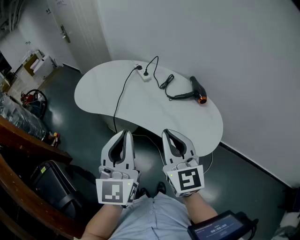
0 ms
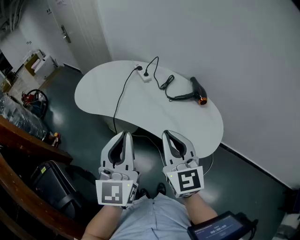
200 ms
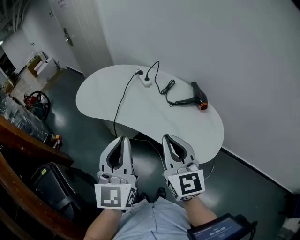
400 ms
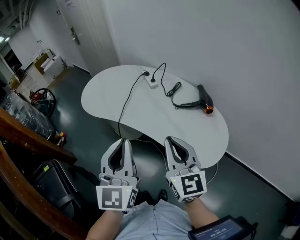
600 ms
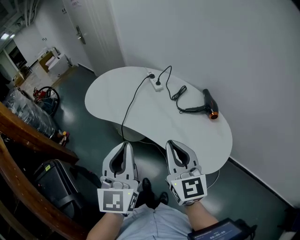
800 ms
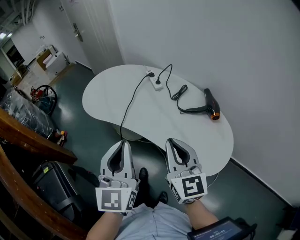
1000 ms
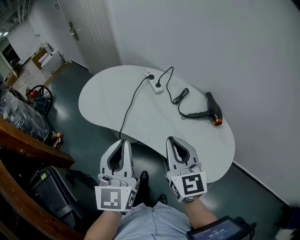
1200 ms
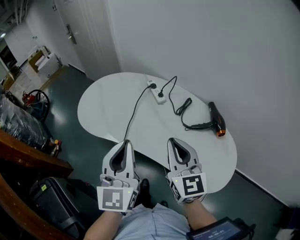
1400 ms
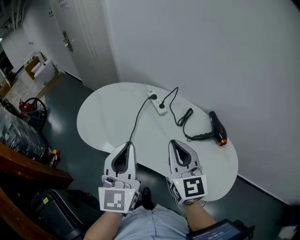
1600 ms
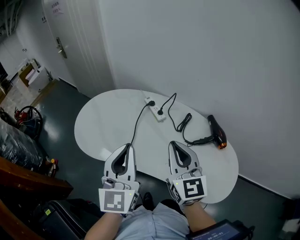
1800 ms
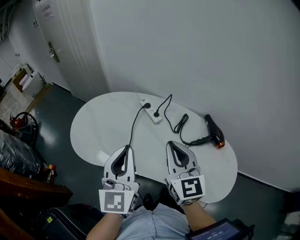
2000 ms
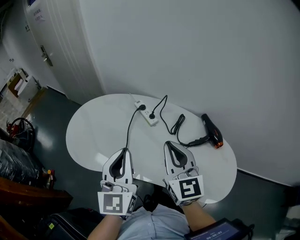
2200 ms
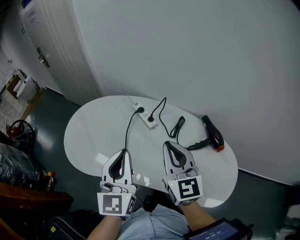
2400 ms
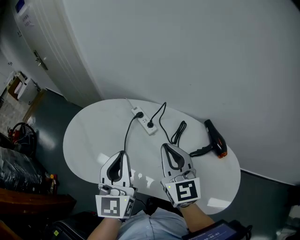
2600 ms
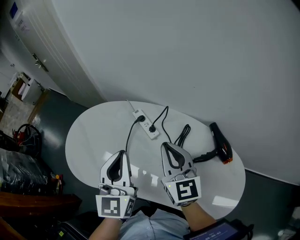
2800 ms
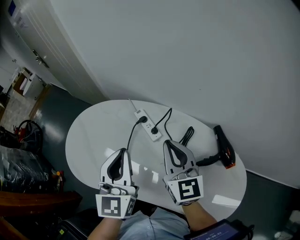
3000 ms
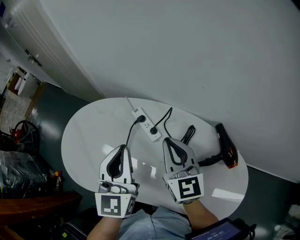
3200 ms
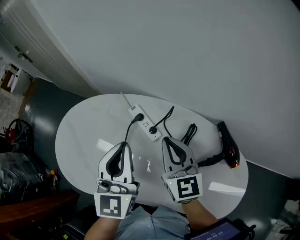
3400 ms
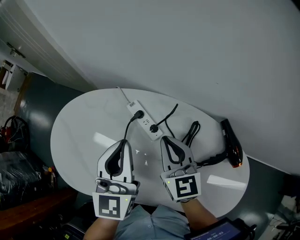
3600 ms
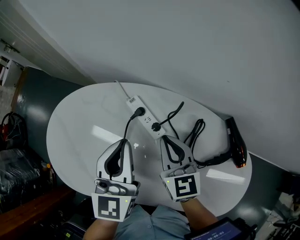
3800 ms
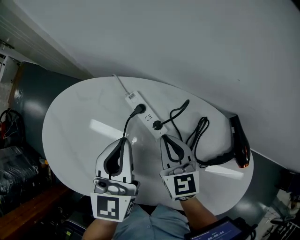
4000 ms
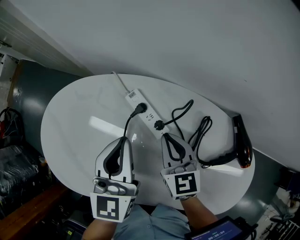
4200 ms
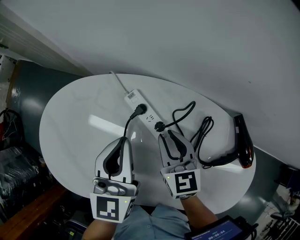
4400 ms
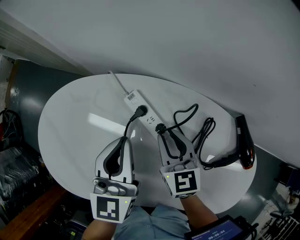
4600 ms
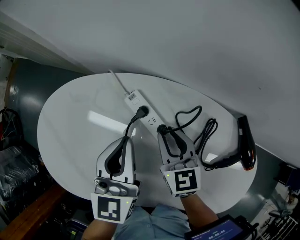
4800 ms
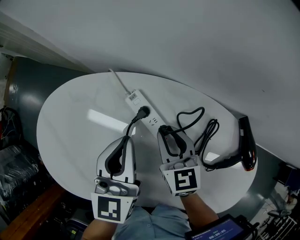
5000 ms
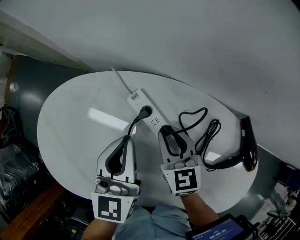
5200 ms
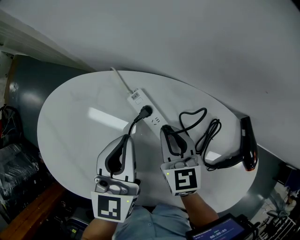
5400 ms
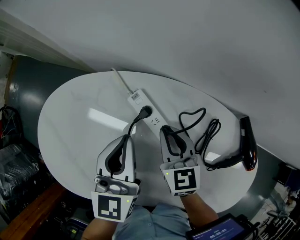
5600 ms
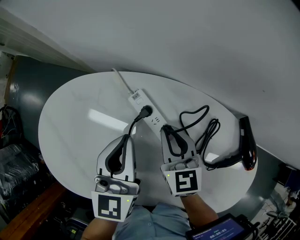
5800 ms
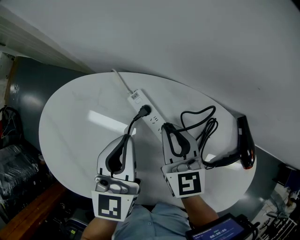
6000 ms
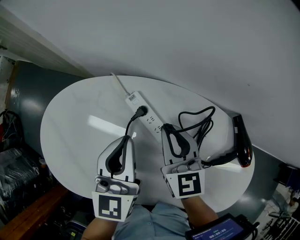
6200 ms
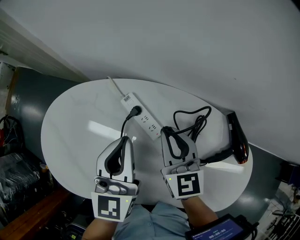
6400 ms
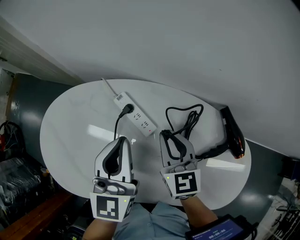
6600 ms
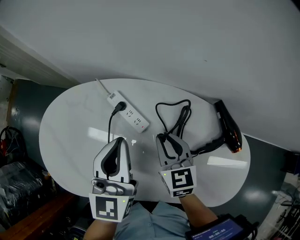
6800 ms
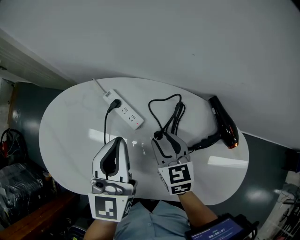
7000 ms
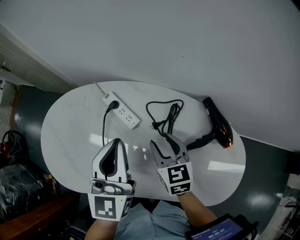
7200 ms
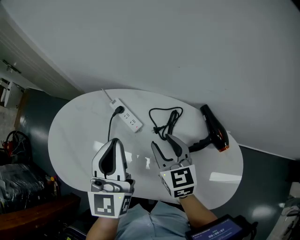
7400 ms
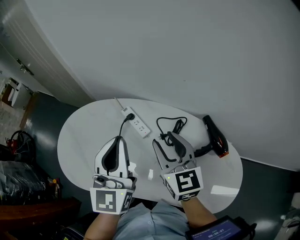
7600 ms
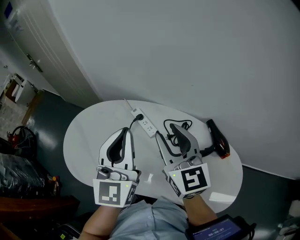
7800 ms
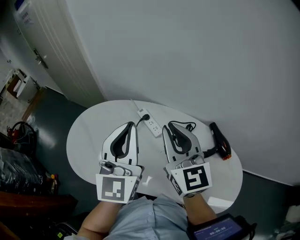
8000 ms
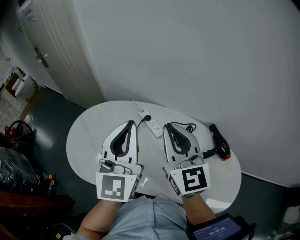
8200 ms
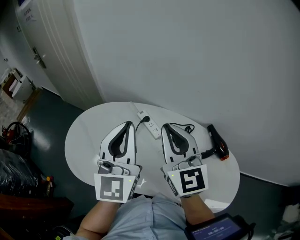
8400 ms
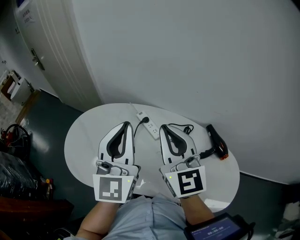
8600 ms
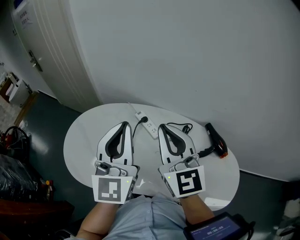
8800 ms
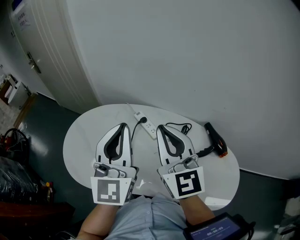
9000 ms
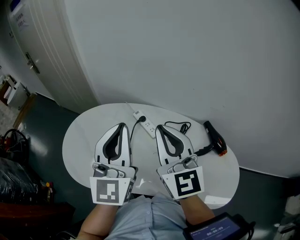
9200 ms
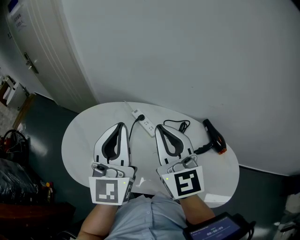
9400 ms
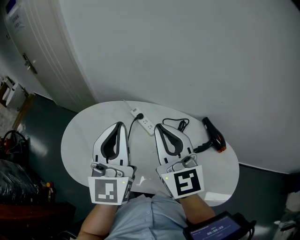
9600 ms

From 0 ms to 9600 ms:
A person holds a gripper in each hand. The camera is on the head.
From 0 ms to 1600 ms: The two grippers go approximately 20 cm forward.
From 1600 ms to 3200 ms: The two grippers go approximately 20 cm forward.
From 3200 ms to 4800 ms: Both grippers travel together downward and forward, approximately 15 cm. The right gripper opens its fingers.
From 4800 ms to 6400 ms: The right gripper shifts approximately 5 cm upward.
From 6400 ms to 8000 ms: Both grippers move upward and backward, roughly 20 cm. The left gripper changes its angle by about 30 degrees. The right gripper rotates approximately 20 degrees, and opens, then closes once more.
From 8000 ms to 9600 ms: The right gripper ends up roughly 5 cm from where it was.

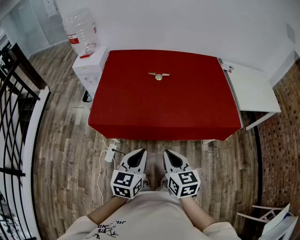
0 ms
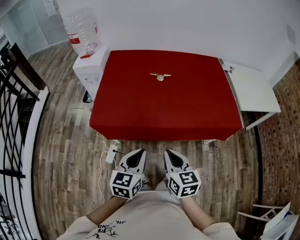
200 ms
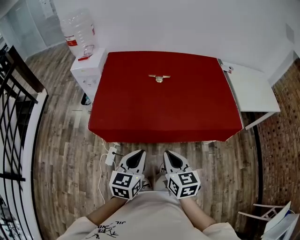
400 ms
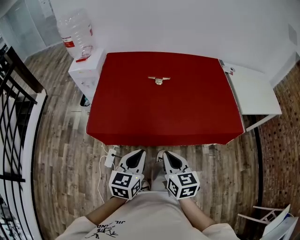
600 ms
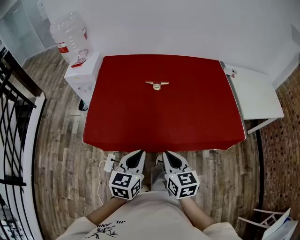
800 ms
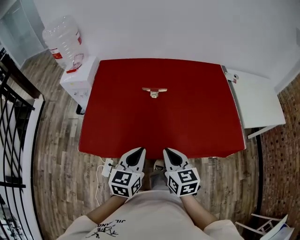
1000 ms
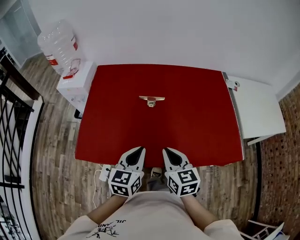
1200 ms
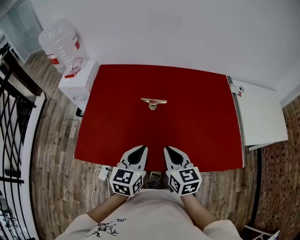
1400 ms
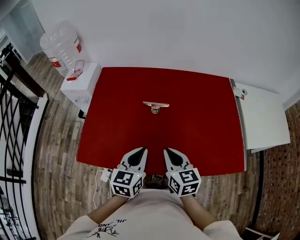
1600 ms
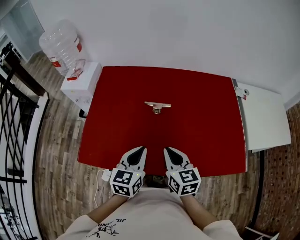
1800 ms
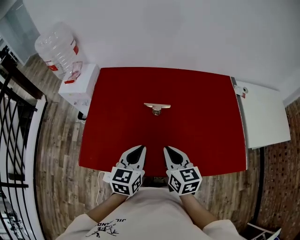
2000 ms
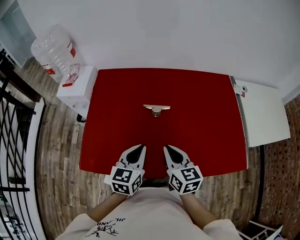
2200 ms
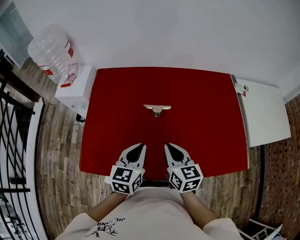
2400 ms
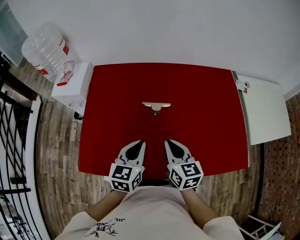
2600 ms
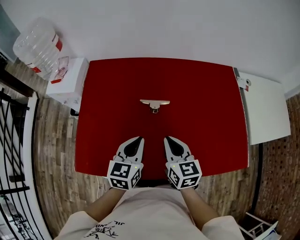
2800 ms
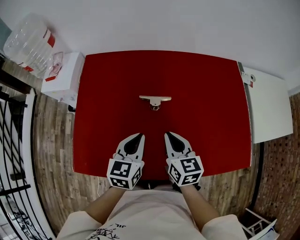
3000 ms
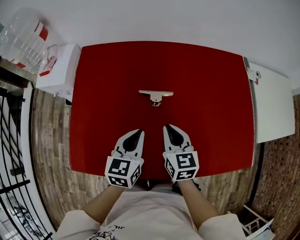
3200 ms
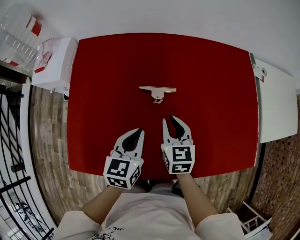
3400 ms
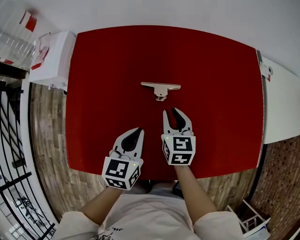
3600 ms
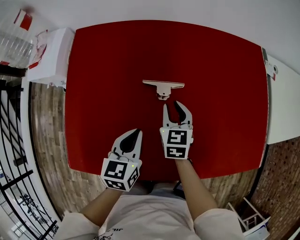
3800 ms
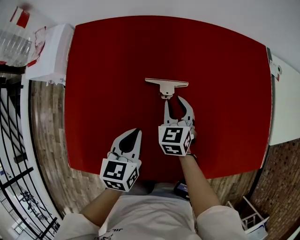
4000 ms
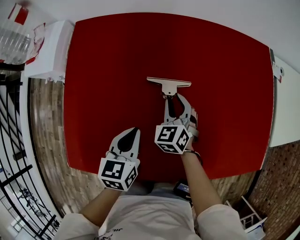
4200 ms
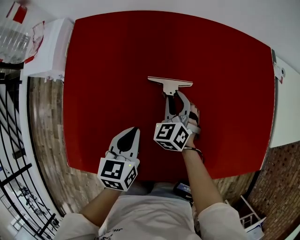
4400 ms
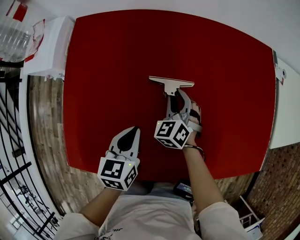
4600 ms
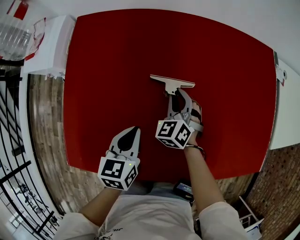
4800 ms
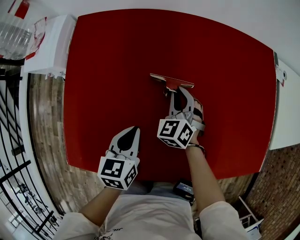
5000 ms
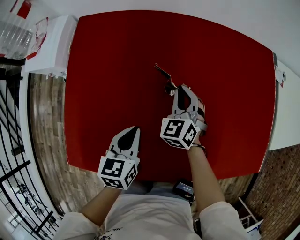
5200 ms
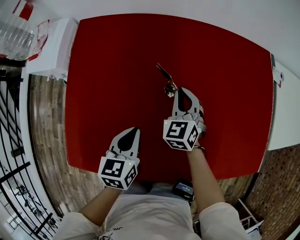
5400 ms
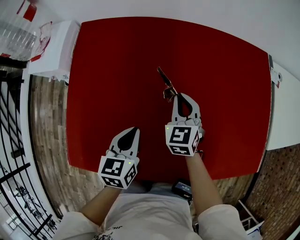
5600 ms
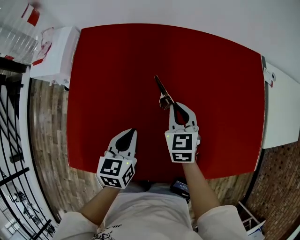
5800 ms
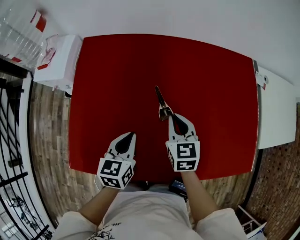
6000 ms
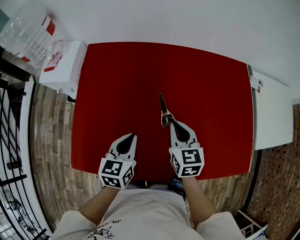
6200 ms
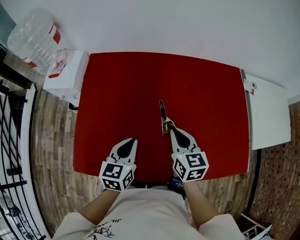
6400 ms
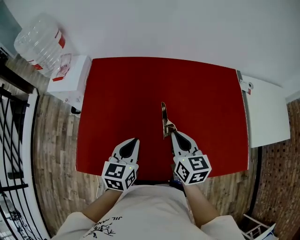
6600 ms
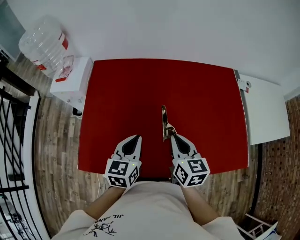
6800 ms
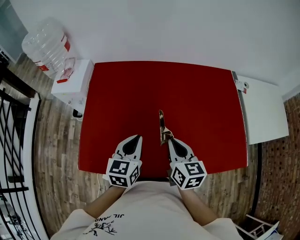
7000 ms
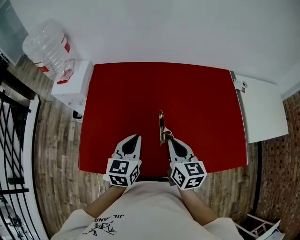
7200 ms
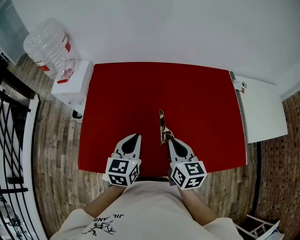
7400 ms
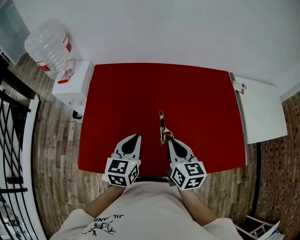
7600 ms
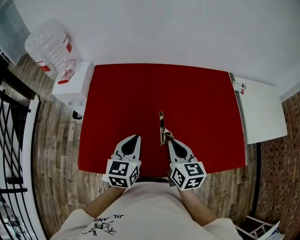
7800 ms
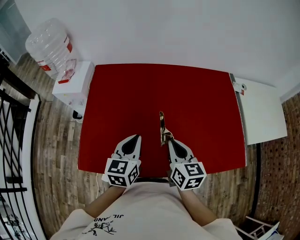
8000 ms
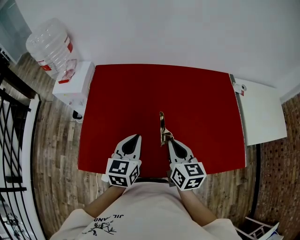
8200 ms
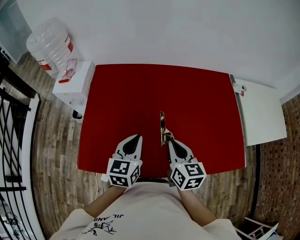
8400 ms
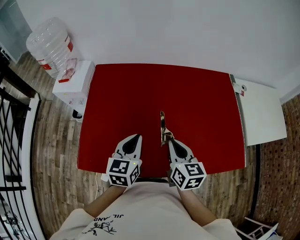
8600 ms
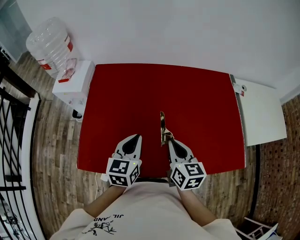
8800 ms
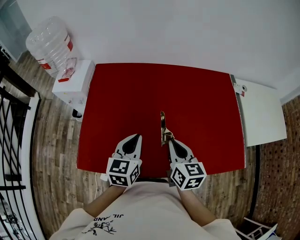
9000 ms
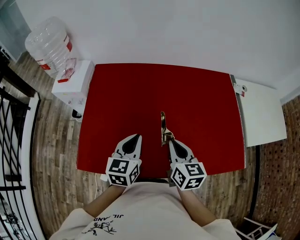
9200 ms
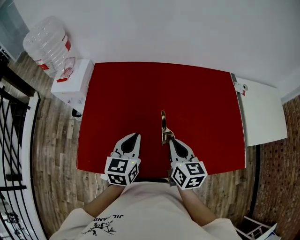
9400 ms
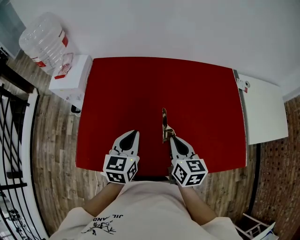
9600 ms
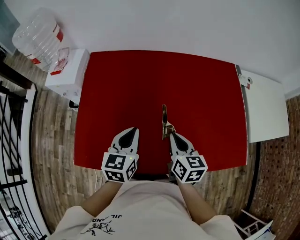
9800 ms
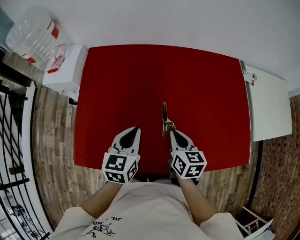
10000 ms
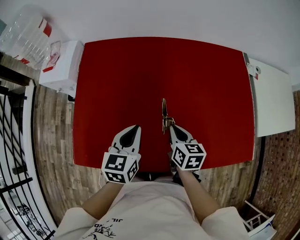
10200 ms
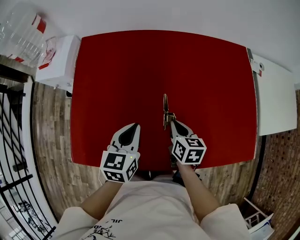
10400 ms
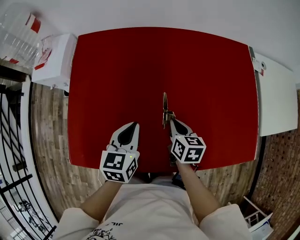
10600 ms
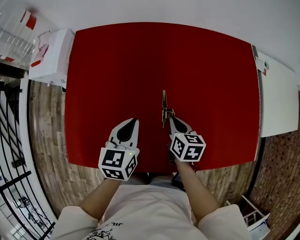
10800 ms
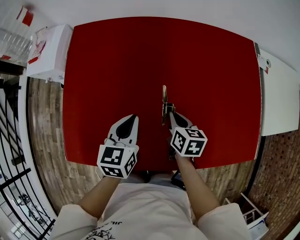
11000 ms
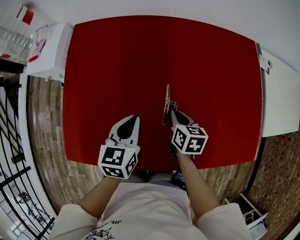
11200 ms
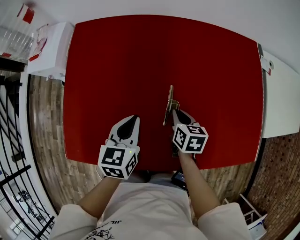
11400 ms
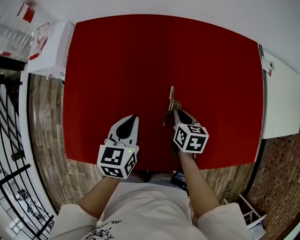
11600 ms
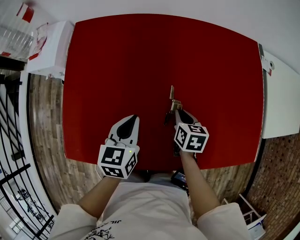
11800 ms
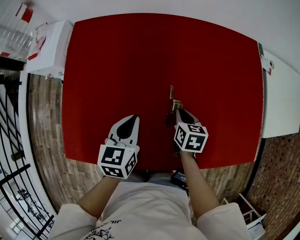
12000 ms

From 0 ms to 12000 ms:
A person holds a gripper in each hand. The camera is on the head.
From 0 ms to 1600 ms: The two grippers go some 30 cm forward.
From 1600 ms to 3000 ms: The grippers both shift forward by about 15 cm.
From 3000 ms to 4400 ms: The left gripper shifts approximately 15 cm downward and to the left, while the right gripper is displaced downward and forward by some 25 cm, twists approximately 50 degrees counterclockwise, seen from behind, and opens up.
From 4400 ms to 6000 ms: The left gripper heads upward, covering about 5 cm; the right gripper travels upward and backward by some 15 cm, turns by some 40 degrees, and closes.
From 6000 ms to 7600 ms: The right gripper goes roughly 20 cm backward and upward, and rotates approximately 20 degrees. The left gripper goes some 15 cm upward and backward.
From 7600 ms to 9000 ms: Both grippers stay put.
From 9000 ms to 10400 ms: The left gripper goes roughly 10 cm downward and forward, while the right gripper is displaced downward and forward by approximately 20 cm.
From 10400 ms to 12000 ms: The two grippers go about 5 cm downward.

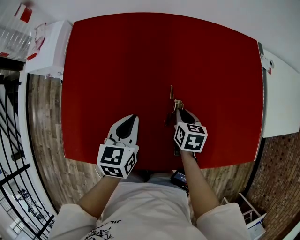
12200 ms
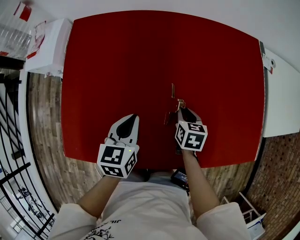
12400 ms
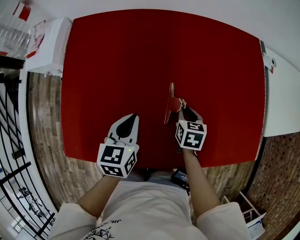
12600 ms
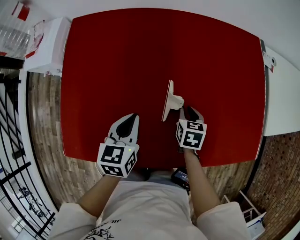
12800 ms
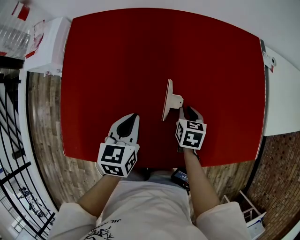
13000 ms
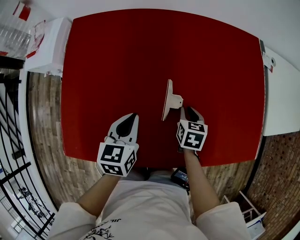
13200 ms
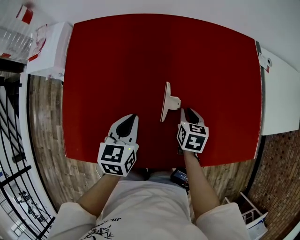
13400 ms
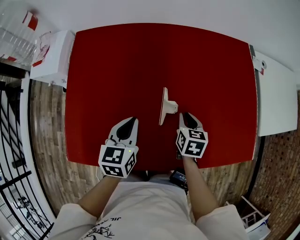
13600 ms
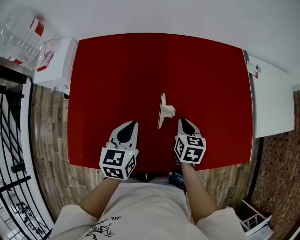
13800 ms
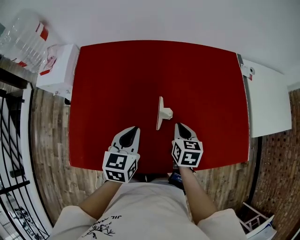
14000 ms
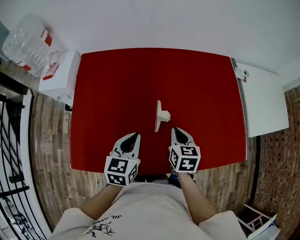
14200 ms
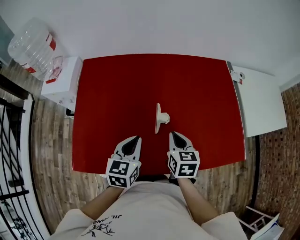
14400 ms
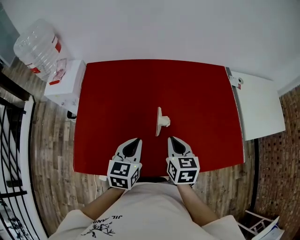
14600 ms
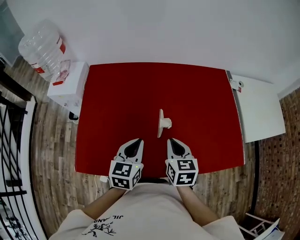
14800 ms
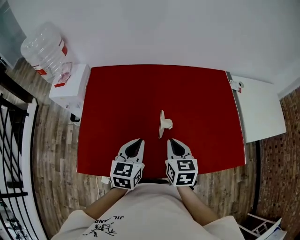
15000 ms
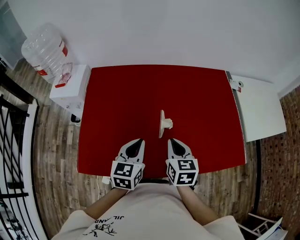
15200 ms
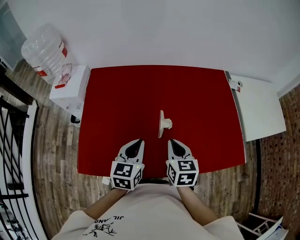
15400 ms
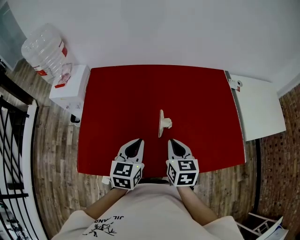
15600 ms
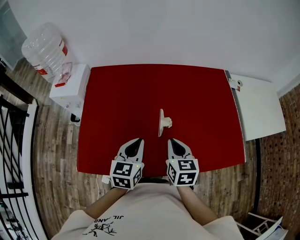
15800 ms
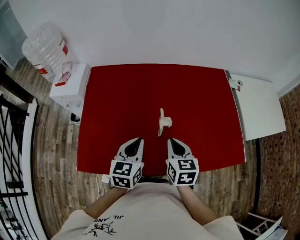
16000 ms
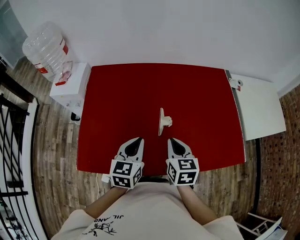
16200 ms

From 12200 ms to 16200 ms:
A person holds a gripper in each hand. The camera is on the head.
From 12200 ms to 13600 ms: The right gripper changes place by roughly 5 cm.
From 13600 ms to 14800 ms: The left gripper is displaced upward and backward by about 15 cm; the right gripper shifts approximately 20 cm upward and backward.
From 14800 ms to 16200 ms: There are only small adjustments of the grippers.
